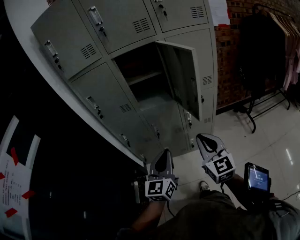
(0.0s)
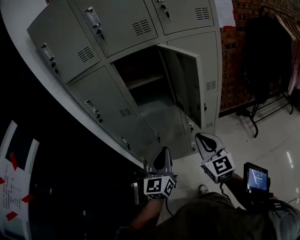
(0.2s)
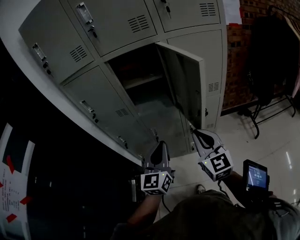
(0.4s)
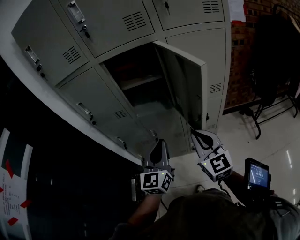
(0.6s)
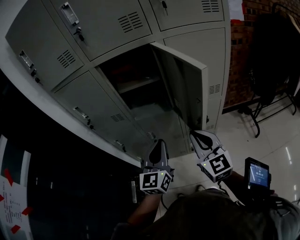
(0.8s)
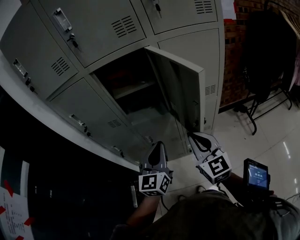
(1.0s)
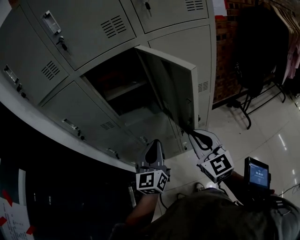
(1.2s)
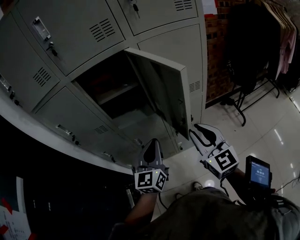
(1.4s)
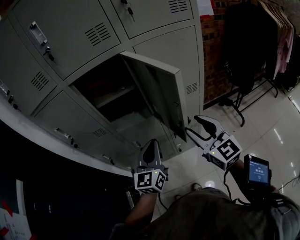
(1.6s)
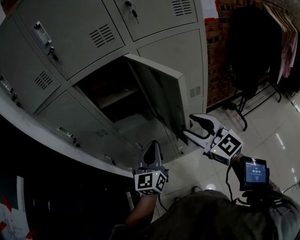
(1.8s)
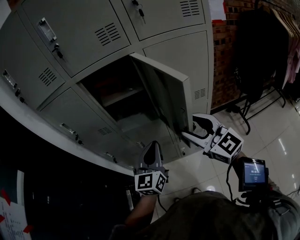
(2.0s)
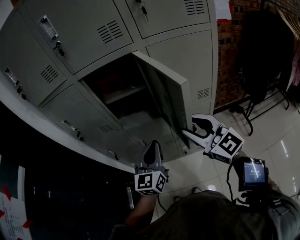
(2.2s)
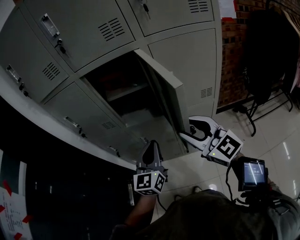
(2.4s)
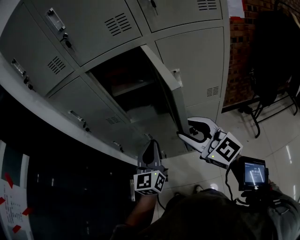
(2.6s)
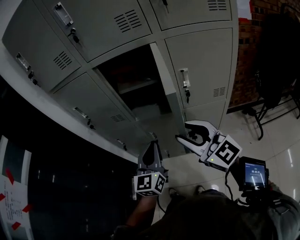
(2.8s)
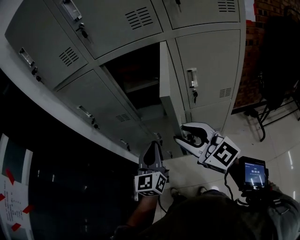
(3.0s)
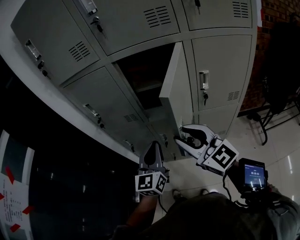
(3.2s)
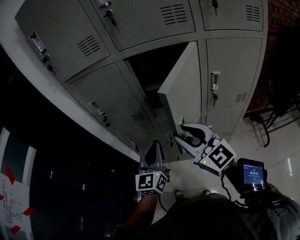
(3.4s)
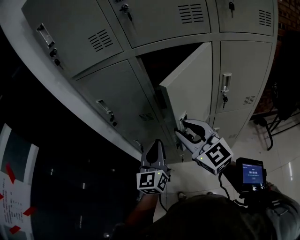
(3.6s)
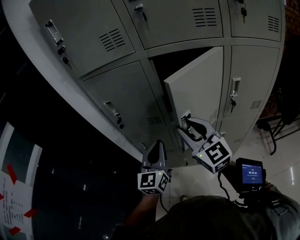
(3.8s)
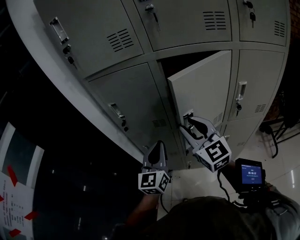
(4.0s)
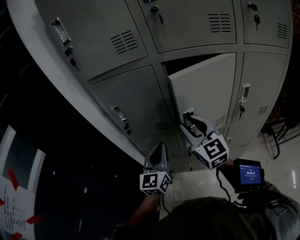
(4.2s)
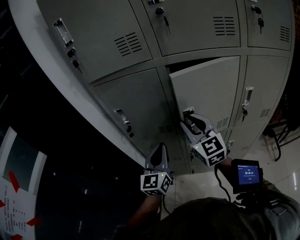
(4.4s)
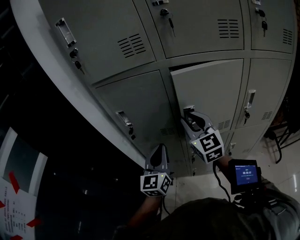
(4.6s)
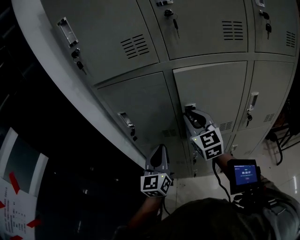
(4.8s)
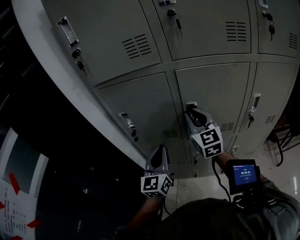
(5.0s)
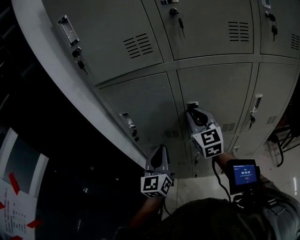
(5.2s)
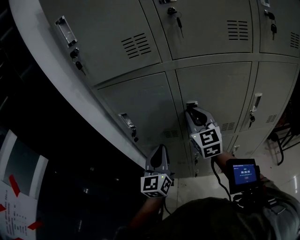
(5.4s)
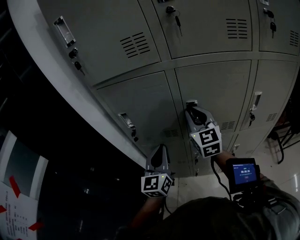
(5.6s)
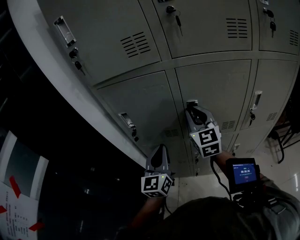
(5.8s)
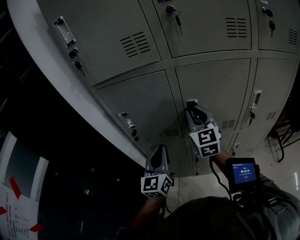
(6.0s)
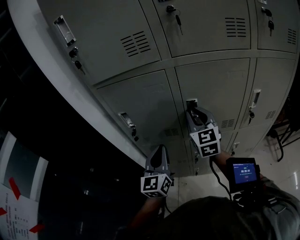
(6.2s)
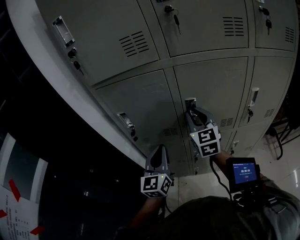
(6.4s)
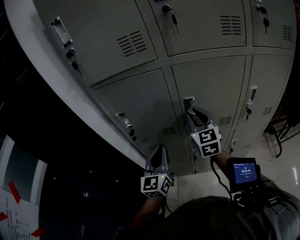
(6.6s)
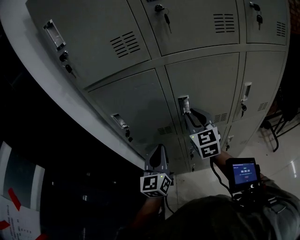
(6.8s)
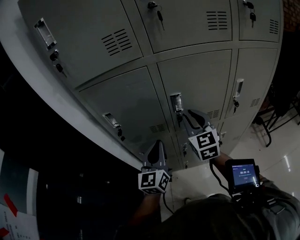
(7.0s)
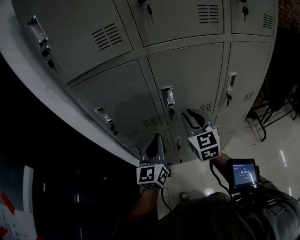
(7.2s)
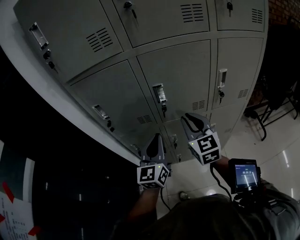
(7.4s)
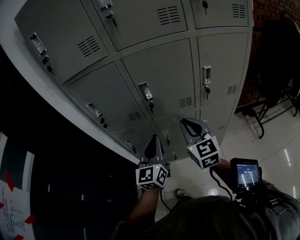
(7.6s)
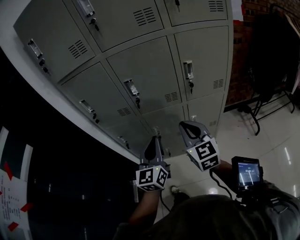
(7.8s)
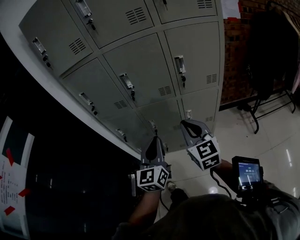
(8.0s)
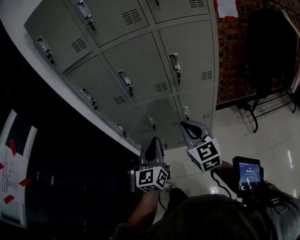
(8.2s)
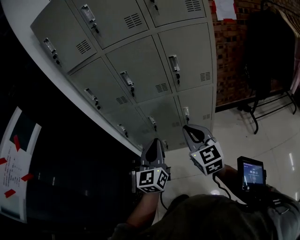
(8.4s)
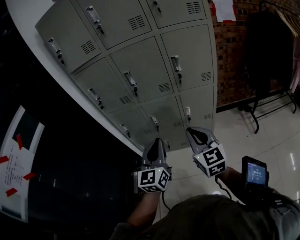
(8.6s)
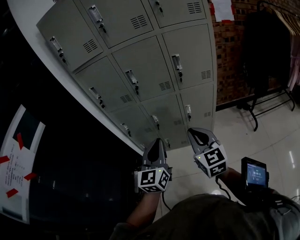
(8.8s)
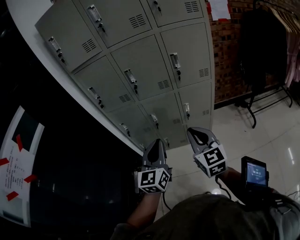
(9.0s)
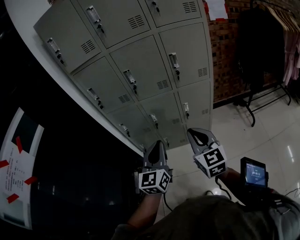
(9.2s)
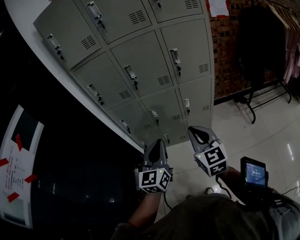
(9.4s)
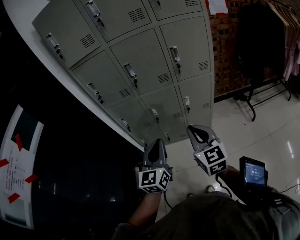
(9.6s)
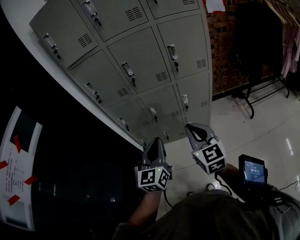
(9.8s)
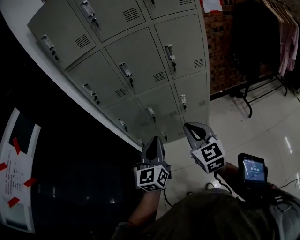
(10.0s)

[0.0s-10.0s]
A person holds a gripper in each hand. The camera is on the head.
0.0s to 1.4s: The left gripper heads forward, covering approximately 20 cm. Meanwhile the right gripper heads forward and to the right, covering approximately 15 cm.
1.4s to 2.8s: The left gripper shifts by roughly 5 cm, while the right gripper ends up about 10 cm from where it was, and turns by some 40 degrees.
2.8s to 4.2s: The right gripper shifts roughly 25 cm forward and to the left. Meanwhile the left gripper shifts roughly 25 cm to the left and forward.
4.2s to 5.8s: The left gripper moves about 5 cm, while the right gripper moves forward, approximately 10 cm.
5.8s to 7.2s: The right gripper shifts about 10 cm backward and to the right; the left gripper moves to the right, approximately 5 cm.
7.2s to 8.6s: Both grippers travel together backward and to the right, roughly 40 cm.
8.6s to 10.0s: The left gripper shifts by some 5 cm. The right gripper ends up some 5 cm from where it was.

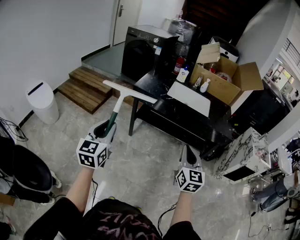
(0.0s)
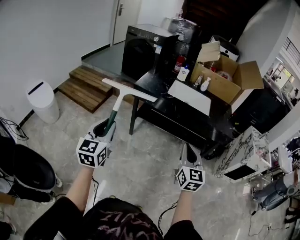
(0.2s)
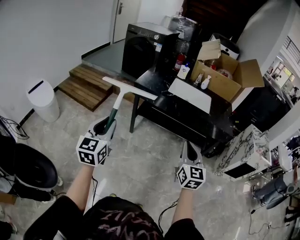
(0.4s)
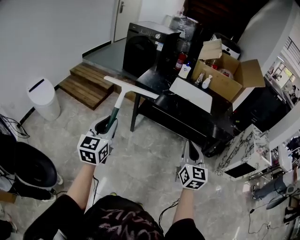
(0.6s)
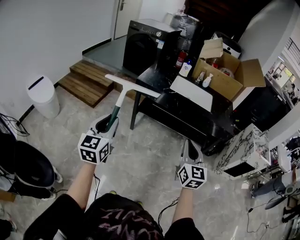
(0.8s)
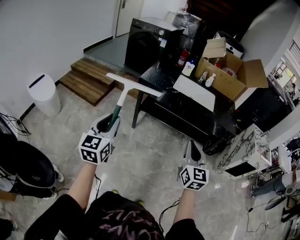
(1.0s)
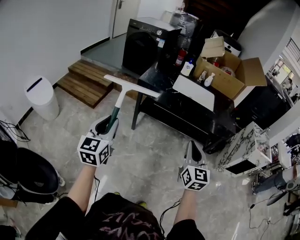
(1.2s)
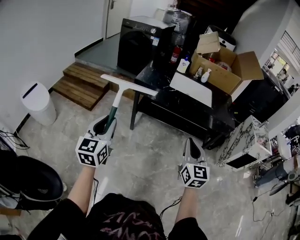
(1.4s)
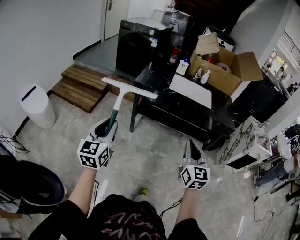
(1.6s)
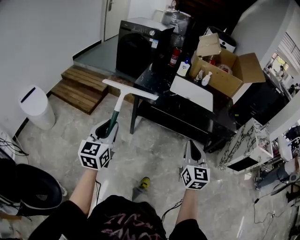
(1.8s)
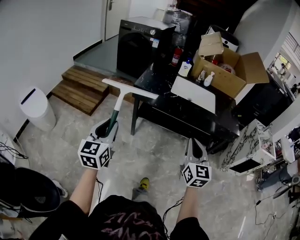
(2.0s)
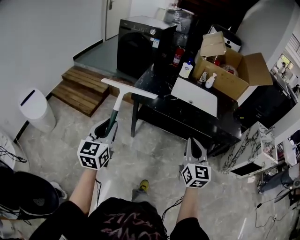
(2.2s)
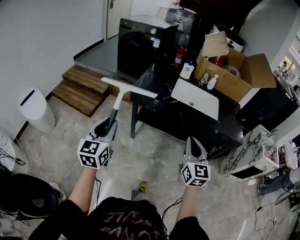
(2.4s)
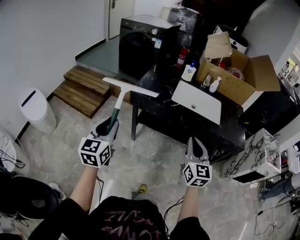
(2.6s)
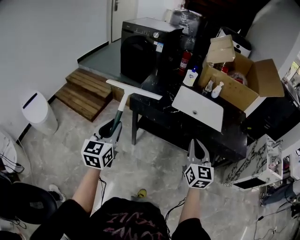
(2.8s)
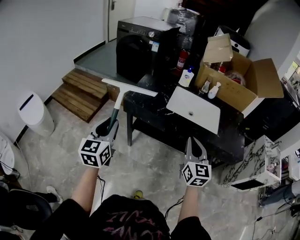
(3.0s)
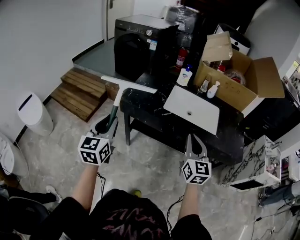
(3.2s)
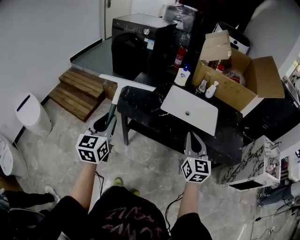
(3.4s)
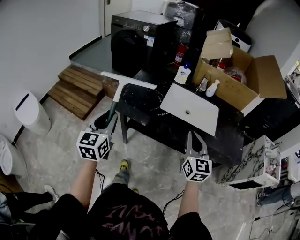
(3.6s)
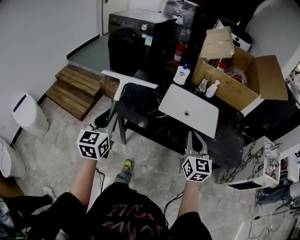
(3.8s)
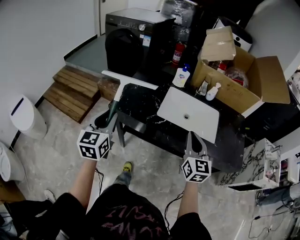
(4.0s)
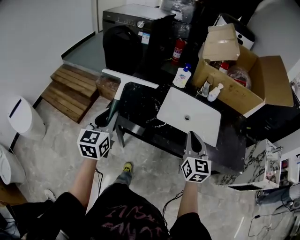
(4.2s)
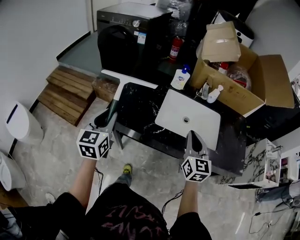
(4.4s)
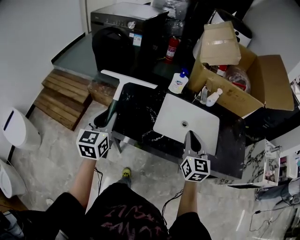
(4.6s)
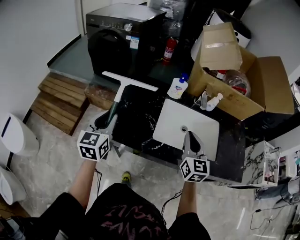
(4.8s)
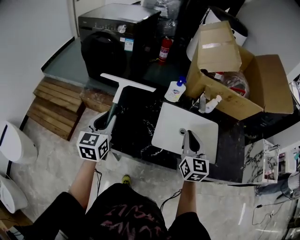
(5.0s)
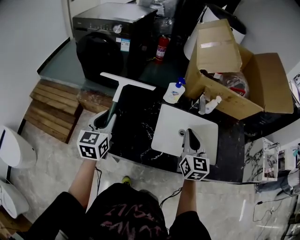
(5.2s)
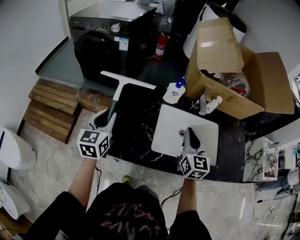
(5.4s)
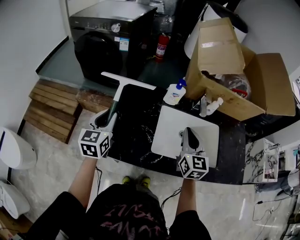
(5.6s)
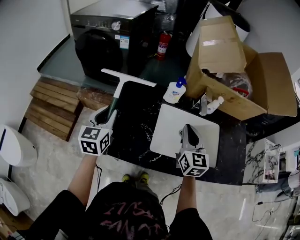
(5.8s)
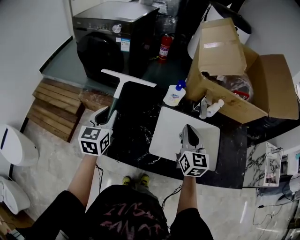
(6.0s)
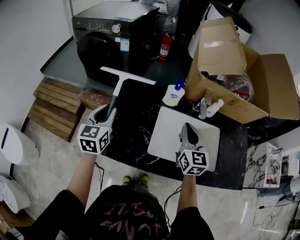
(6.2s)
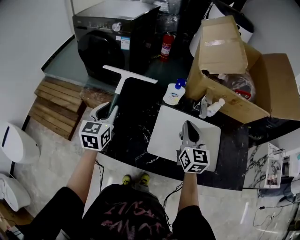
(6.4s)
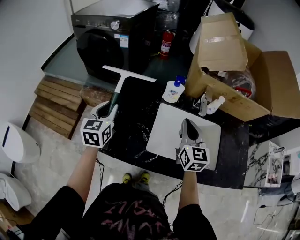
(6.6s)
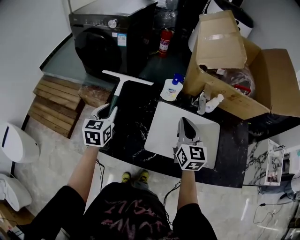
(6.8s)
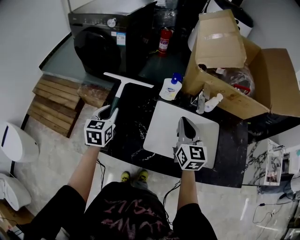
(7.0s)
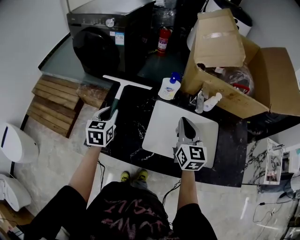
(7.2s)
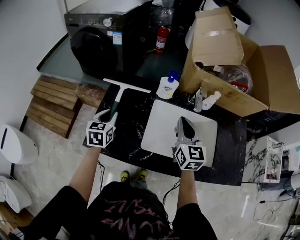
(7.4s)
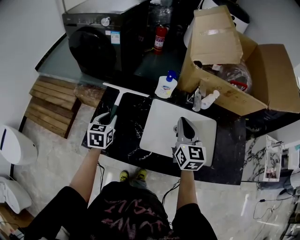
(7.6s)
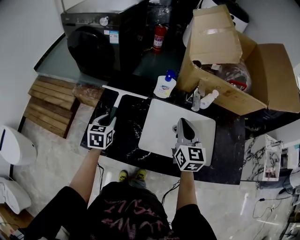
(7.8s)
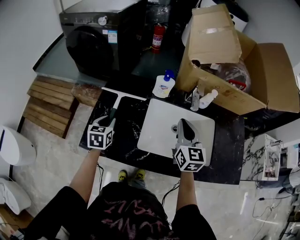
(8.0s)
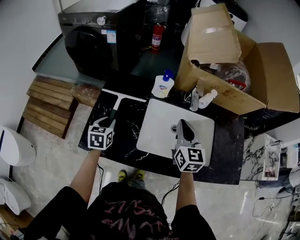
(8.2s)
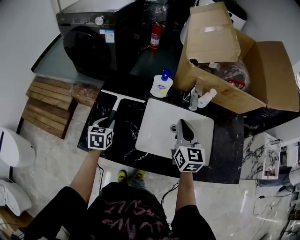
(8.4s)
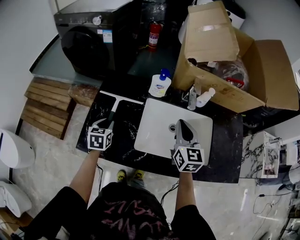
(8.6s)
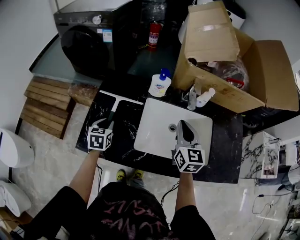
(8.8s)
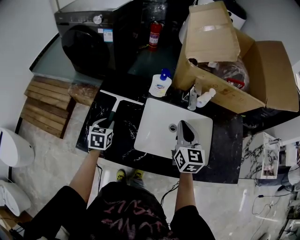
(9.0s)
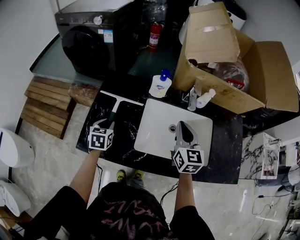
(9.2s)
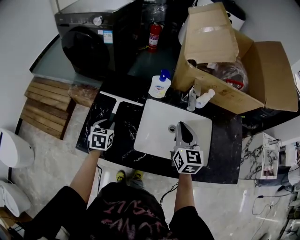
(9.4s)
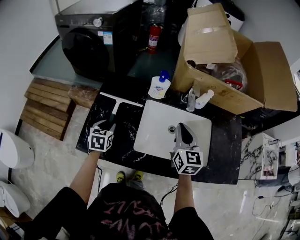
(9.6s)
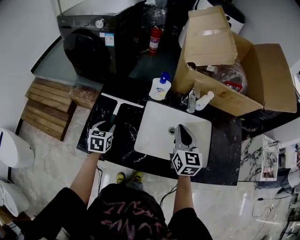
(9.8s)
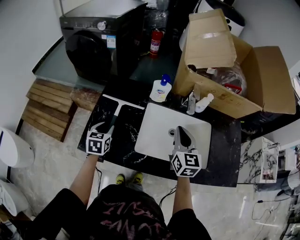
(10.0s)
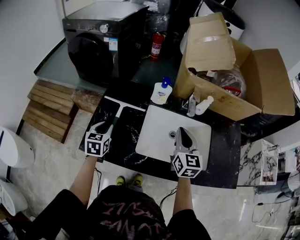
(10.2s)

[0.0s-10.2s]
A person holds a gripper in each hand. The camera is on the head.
0.0s to 1.4s: The grippers both shift to the left by some 5 cm.
1.4s to 3.0s: The grippers both shift forward by some 30 cm.
3.0s to 4.4s: The two grippers go roughly 25 cm forward.
4.4s to 5.8s: The grippers both shift forward by some 20 cm.
5.8s to 7.2s: The left gripper travels downward by roughly 5 cm.
7.2s to 8.8s: The left gripper heads downward, covering about 10 cm.
8.8s to 10.2s: The left gripper moves about 5 cm.

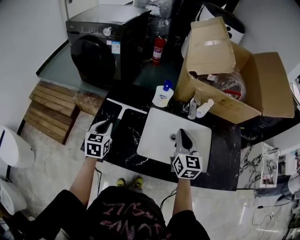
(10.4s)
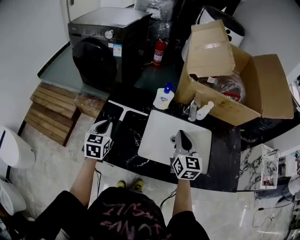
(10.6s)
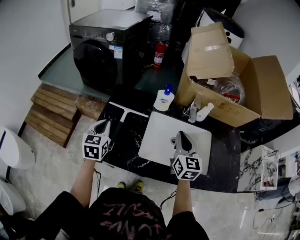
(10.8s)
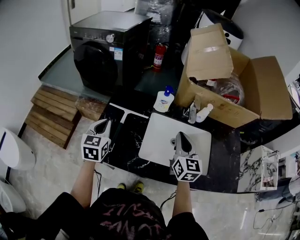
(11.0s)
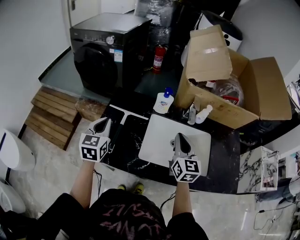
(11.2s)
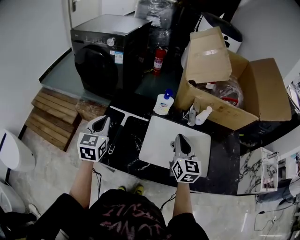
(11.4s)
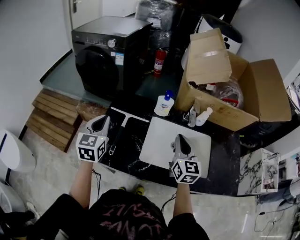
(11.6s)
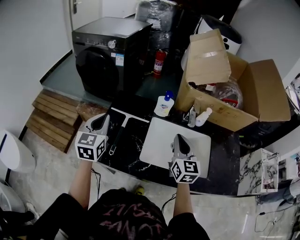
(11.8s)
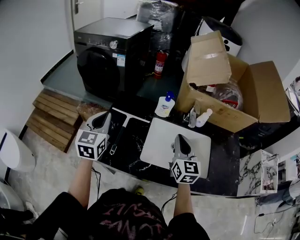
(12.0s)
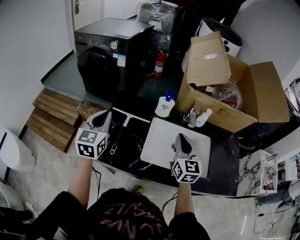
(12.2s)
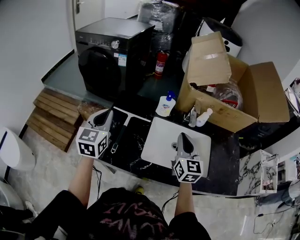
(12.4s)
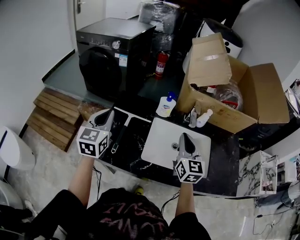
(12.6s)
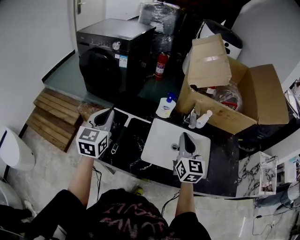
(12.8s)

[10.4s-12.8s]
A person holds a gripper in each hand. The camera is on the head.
10.4s to 11.6s: The left gripper travels upward by some 15 cm.
11.6s to 12.8s: The grippers make only small movements.

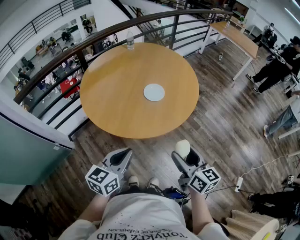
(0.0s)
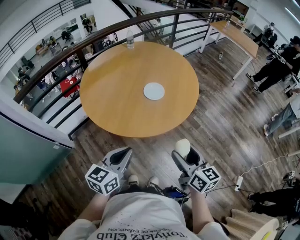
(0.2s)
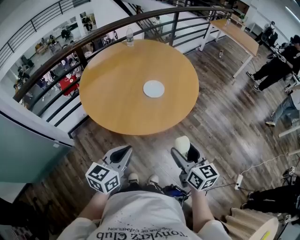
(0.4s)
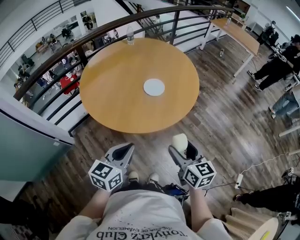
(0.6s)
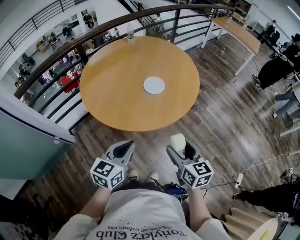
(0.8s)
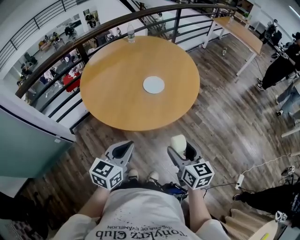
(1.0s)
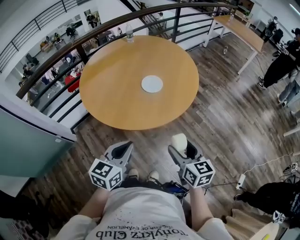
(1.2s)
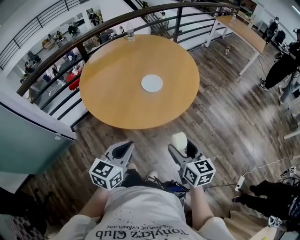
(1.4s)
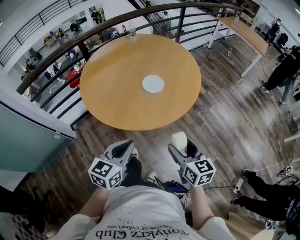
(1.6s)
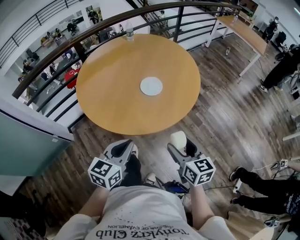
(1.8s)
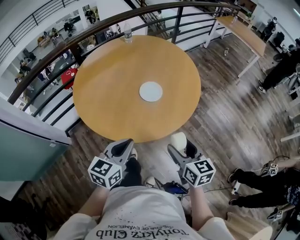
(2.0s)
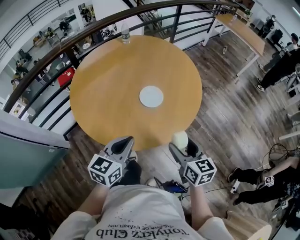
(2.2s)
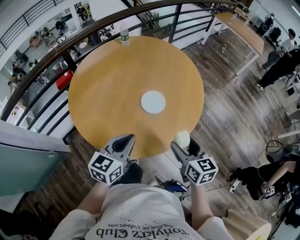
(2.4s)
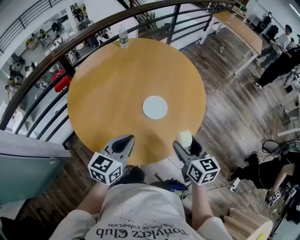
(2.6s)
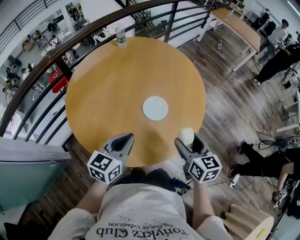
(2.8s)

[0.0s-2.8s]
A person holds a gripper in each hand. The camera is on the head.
0.0s to 1.4s: The left gripper is displaced to the right by about 5 cm. Meanwhile the right gripper shifts by some 5 cm.
1.4s to 2.8s: The two grippers go roughly 25 cm forward.
